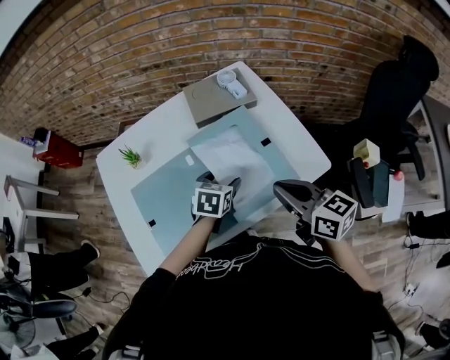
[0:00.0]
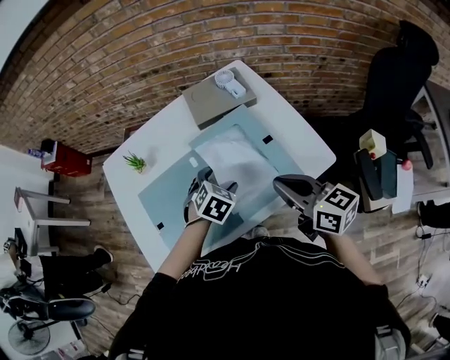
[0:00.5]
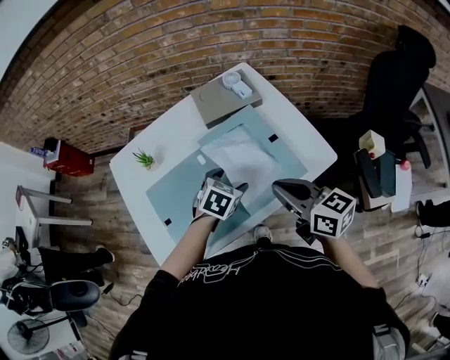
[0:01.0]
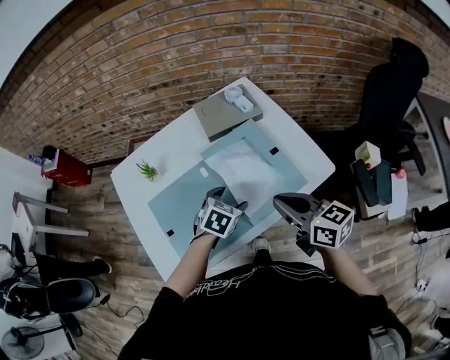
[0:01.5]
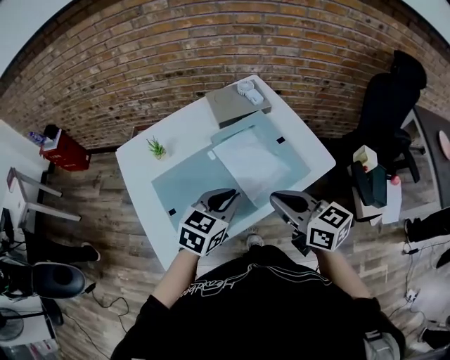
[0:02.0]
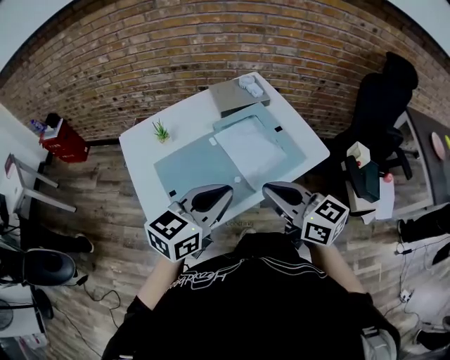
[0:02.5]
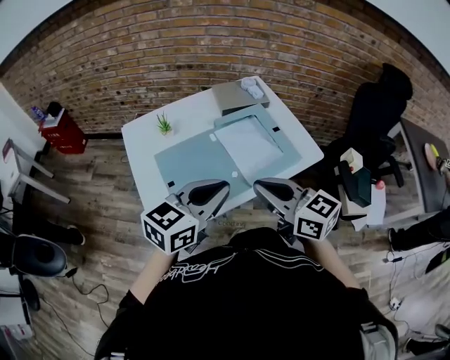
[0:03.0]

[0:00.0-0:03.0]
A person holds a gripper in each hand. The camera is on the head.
0.0 to 1.5 s: The left gripper changes place by about 5 cm.
1.5 to 3.0 s: The left gripper is displaced upward and backward by roughly 30 cm, angles its fingers upward, by some 40 degrees, and closes up; the right gripper goes approximately 20 cm backward, to the left and upward.

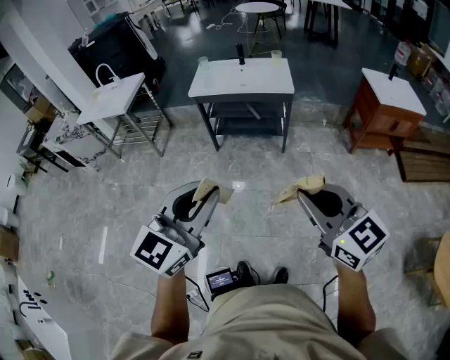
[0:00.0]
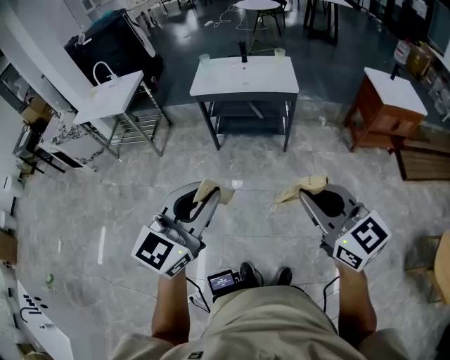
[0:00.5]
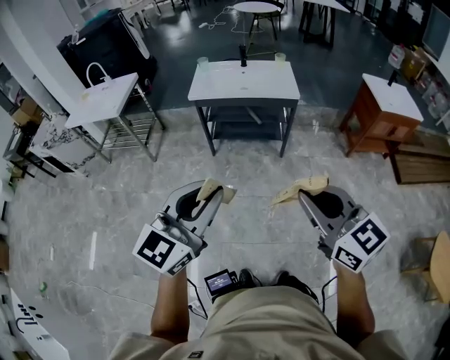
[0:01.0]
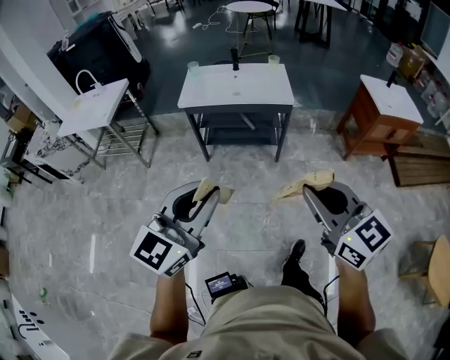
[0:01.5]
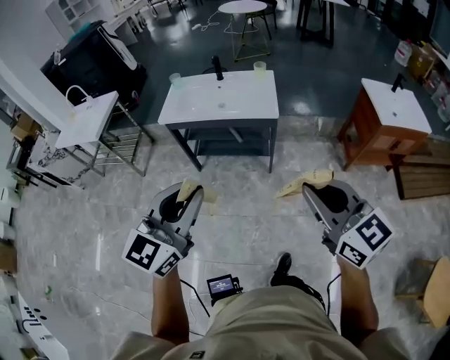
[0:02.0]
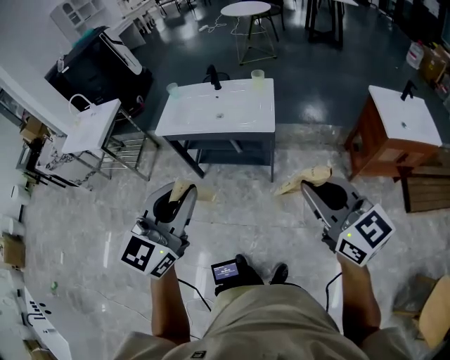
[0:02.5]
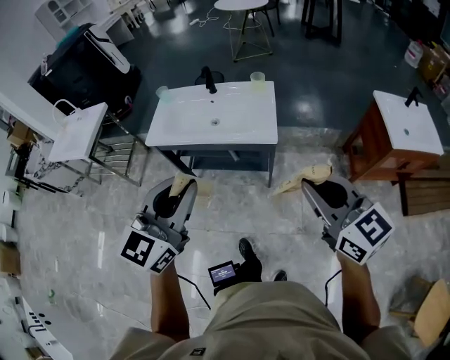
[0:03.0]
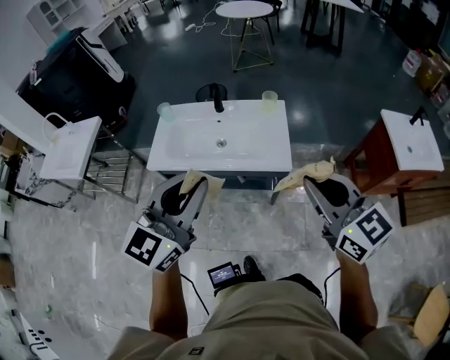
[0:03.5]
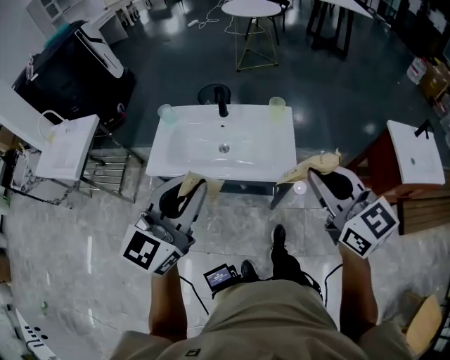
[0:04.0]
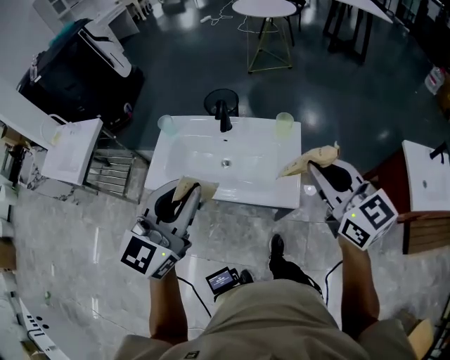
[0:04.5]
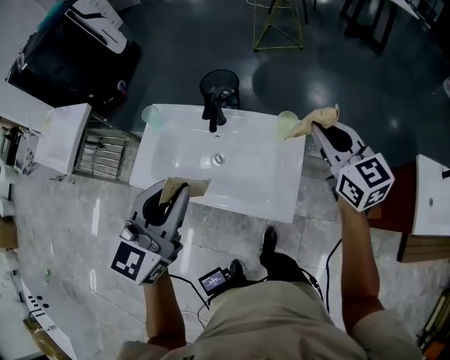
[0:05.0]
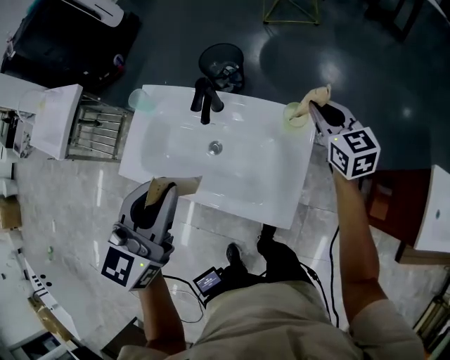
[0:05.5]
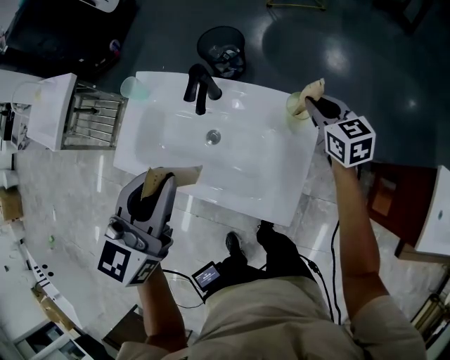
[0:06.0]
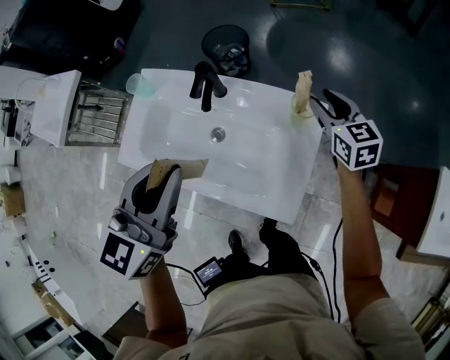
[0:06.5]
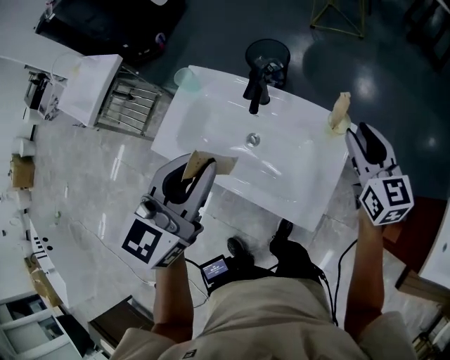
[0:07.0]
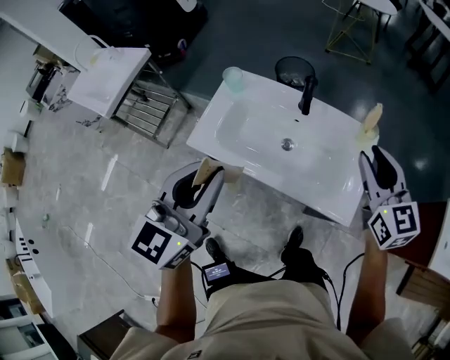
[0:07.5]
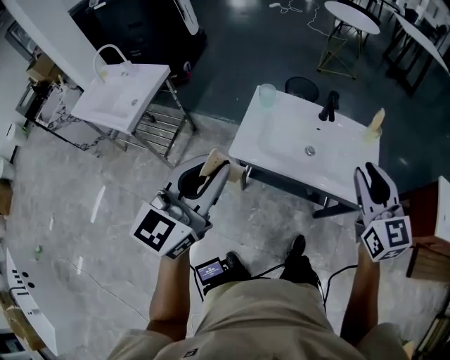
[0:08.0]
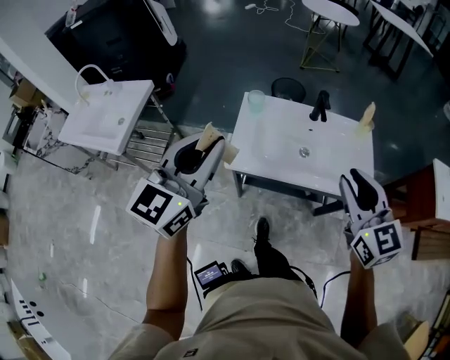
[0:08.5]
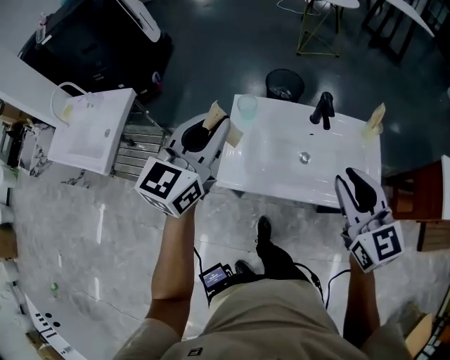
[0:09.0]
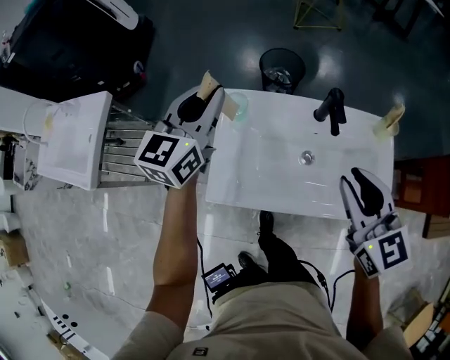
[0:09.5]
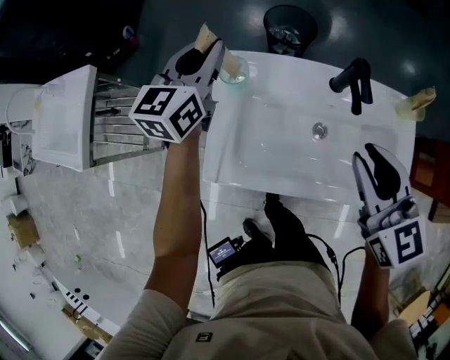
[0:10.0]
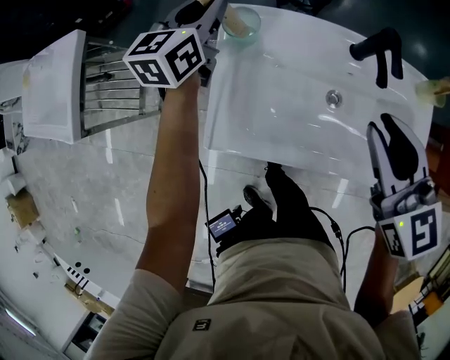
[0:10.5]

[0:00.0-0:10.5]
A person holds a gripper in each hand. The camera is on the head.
0.0 to 2.0 s: The left gripper shifts some 30 cm forward. Meanwhile the right gripper moves forward and to the right, roughly 30 cm.
2.0 to 4.0 s: The pair of grippers is taken forward, approximately 40 cm.
4.0 to 6.5 s: The right gripper heads forward and downward, covering roughly 60 cm, and opens. The left gripper travels forward and downward by some 30 cm, and rotates some 30 degrees.
6.5 to 8.5 s: The two grippers travel together, to the left and backward, about 50 cm. The right gripper heads upward, covering approximately 25 cm, and changes its angle by about 20 degrees. The left gripper turns by approximately 20 degrees.
8.5 to 10.5 s: The left gripper moves forward and downward, about 60 cm, and changes its angle by approximately 20 degrees. Meanwhile the right gripper goes approximately 35 cm forward and downward.

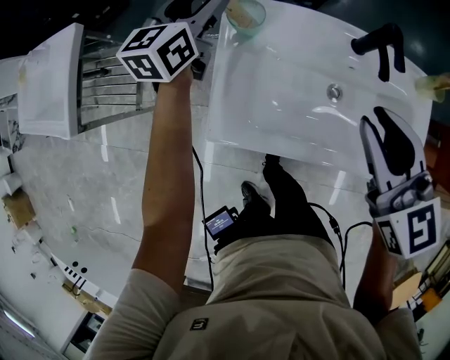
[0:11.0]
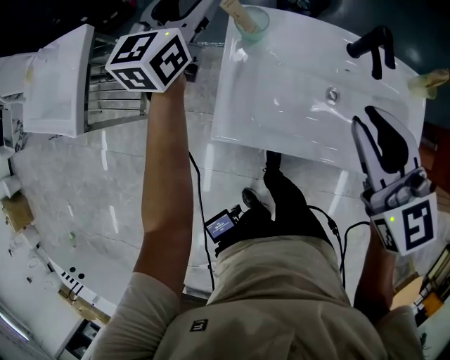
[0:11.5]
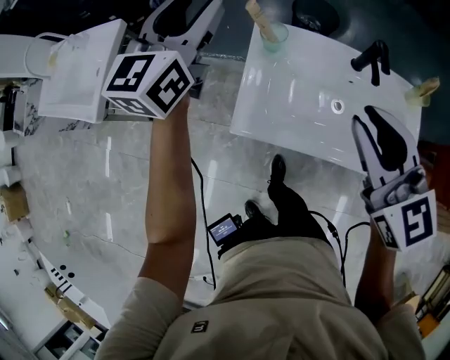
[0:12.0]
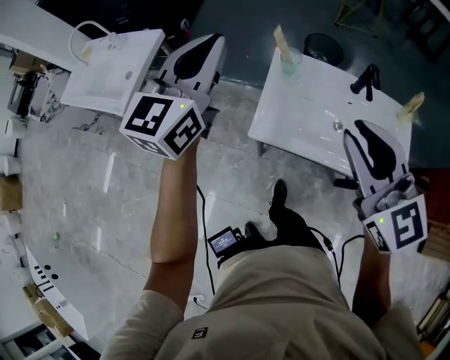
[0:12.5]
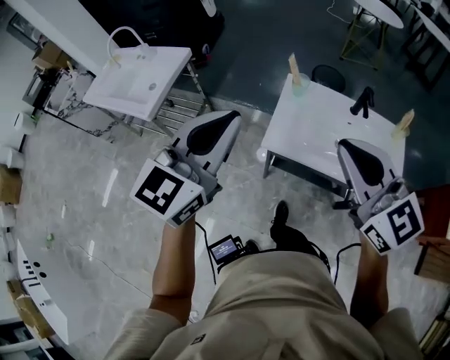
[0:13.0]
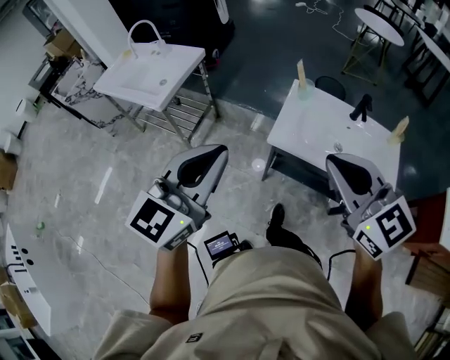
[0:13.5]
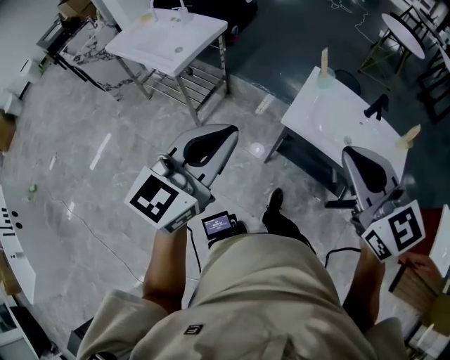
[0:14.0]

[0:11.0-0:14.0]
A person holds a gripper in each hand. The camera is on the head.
11.0 to 12.5 s: The right gripper heads upward, backward and to the left, covering some 25 cm, and rotates about 20 degrees, while the left gripper heads upward and backward, covering some 40 cm, turns by approximately 20 degrees, and closes.
12.5 to 14.0 s: The right gripper moves backward and to the left, some 25 cm, while the left gripper moves backward and to the left, some 35 cm.

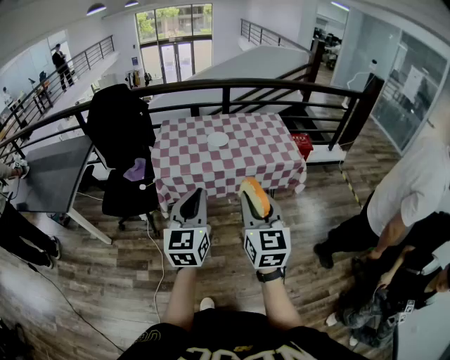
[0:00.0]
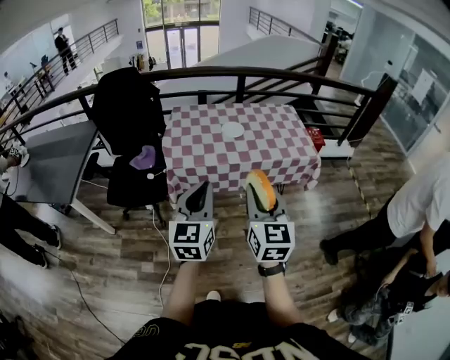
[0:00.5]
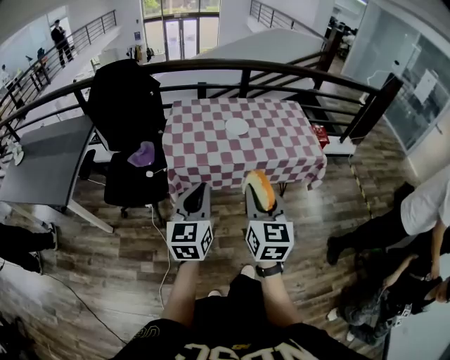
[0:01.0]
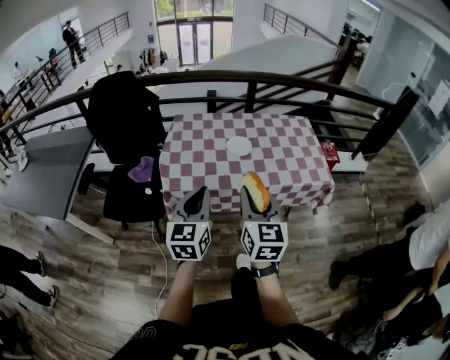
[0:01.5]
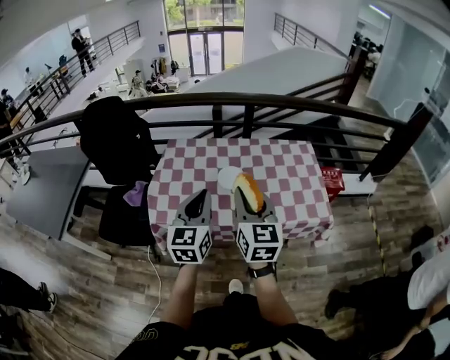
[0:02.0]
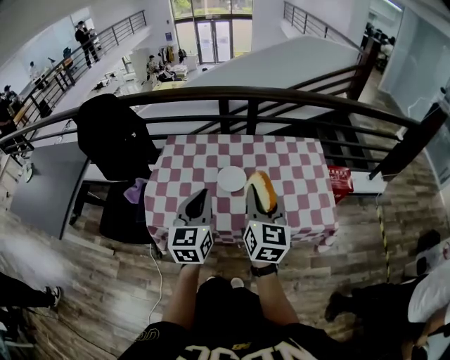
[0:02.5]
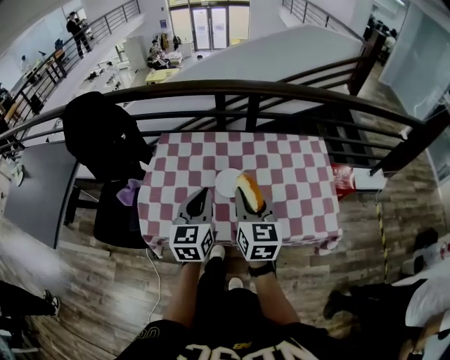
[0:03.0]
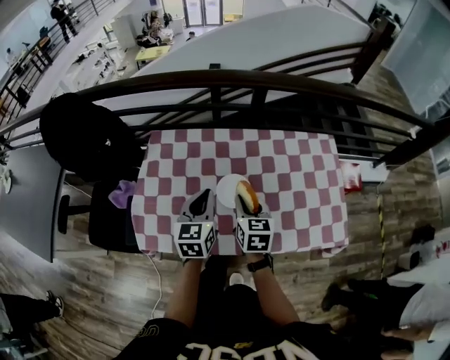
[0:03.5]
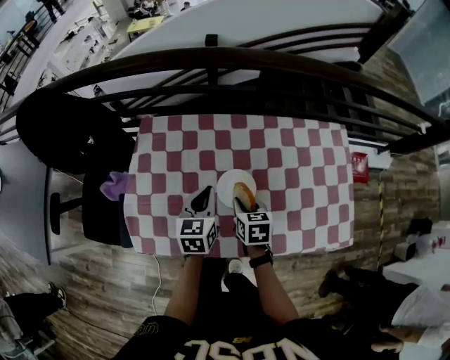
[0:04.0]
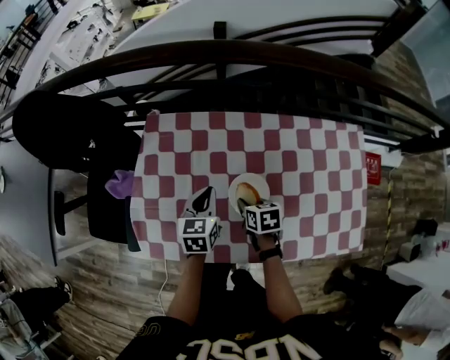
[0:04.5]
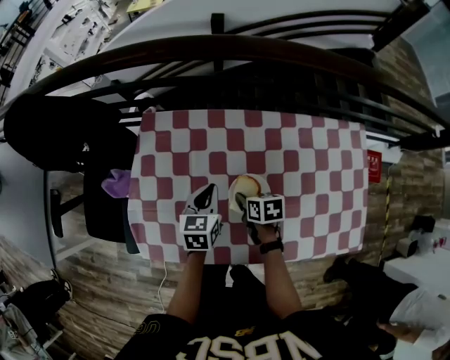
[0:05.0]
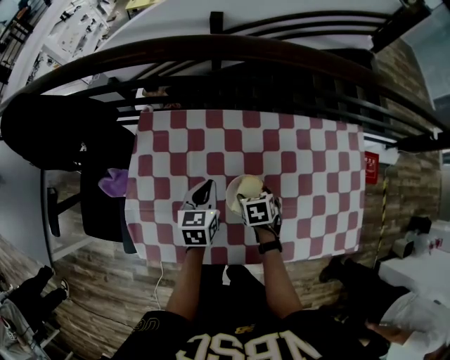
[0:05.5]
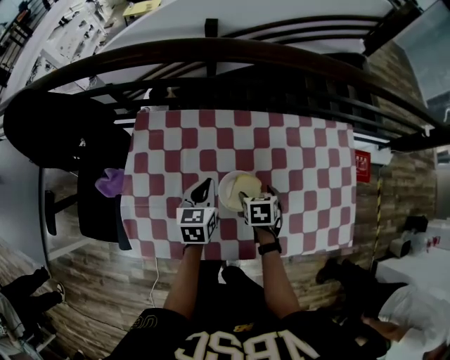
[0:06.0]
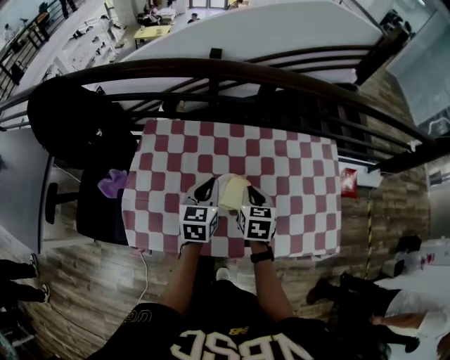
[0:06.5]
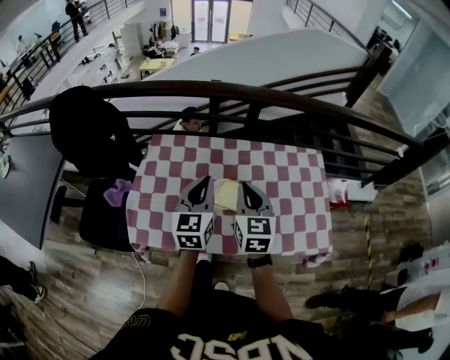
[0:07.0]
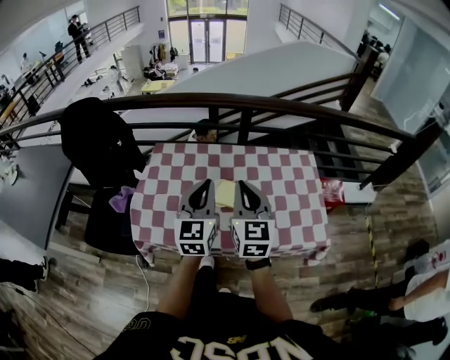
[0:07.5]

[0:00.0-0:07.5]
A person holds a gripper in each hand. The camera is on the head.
0.0 to 2.0 s: Both grippers travel together forward, roughly 40 cm.
2.0 to 4.0 s: The left gripper shifts some 40 cm forward and downward, and turns by some 30 degrees; the right gripper shifts approximately 40 cm downward and forward, and points its fingers approximately 40 degrees further downward.
4.0 to 5.5 s: The two grippers go about 10 cm downward and forward. The right gripper changes its angle by approximately 20 degrees, and opens its fingers.
5.5 to 7.5 s: The grippers both shift upward and backward by some 40 cm. The right gripper angles its fingers upward, by about 60 degrees, and closes. The left gripper angles its fingers upward, by roughly 30 degrees.

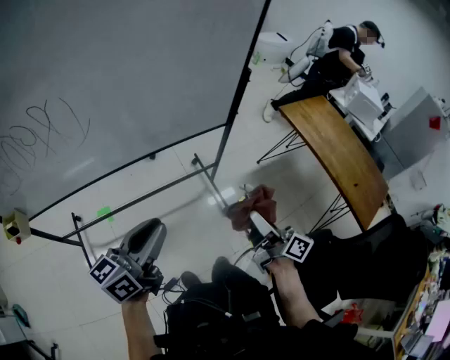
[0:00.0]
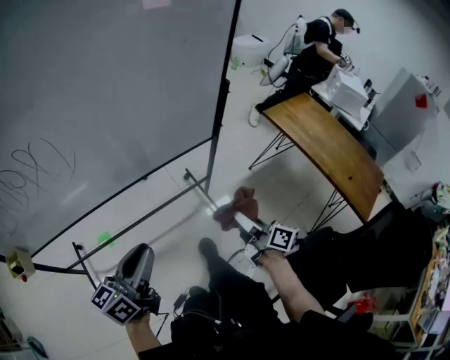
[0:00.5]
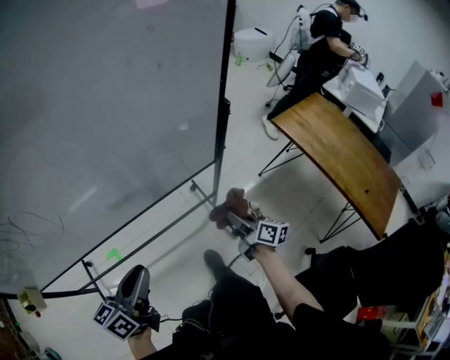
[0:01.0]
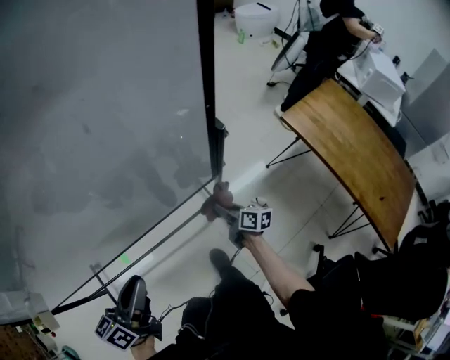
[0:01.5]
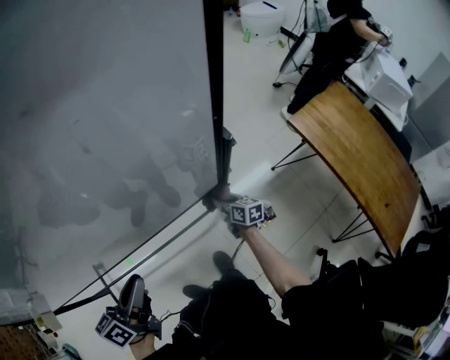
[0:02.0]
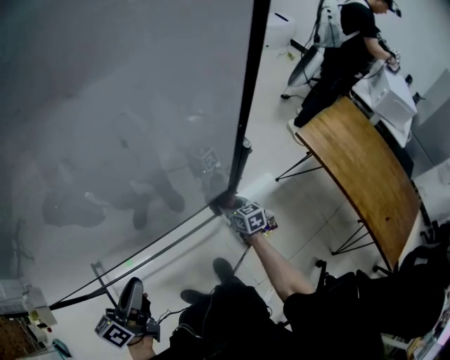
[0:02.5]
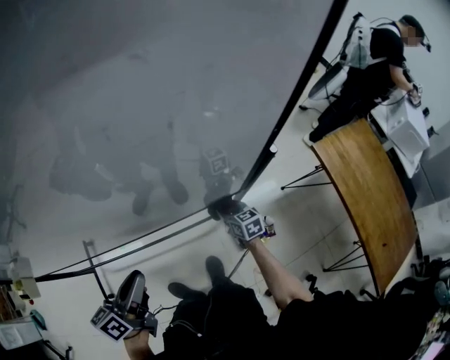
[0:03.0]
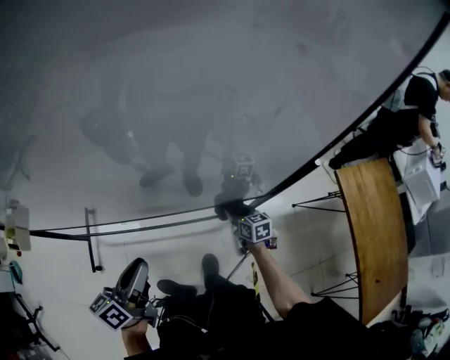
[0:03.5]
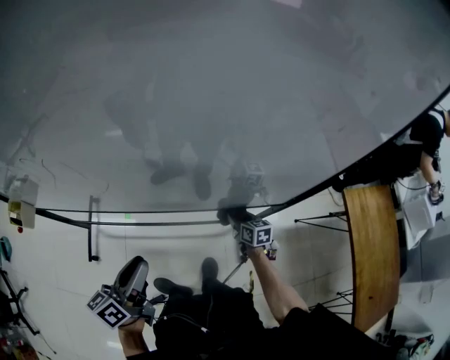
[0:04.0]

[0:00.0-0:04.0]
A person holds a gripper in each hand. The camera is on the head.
0.0 to 2.0 s: The right gripper shifts approximately 50 cm forward and downward, and points its fingers some 30 degrees further downward, while the left gripper goes some 25 cm forward, and turns by some 20 degrees.
2.0 to 4.0 s: The left gripper goes about 20 cm to the left and backward, and swivels some 20 degrees; the right gripper shifts roughly 20 cm to the left, and swivels about 30 degrees.
